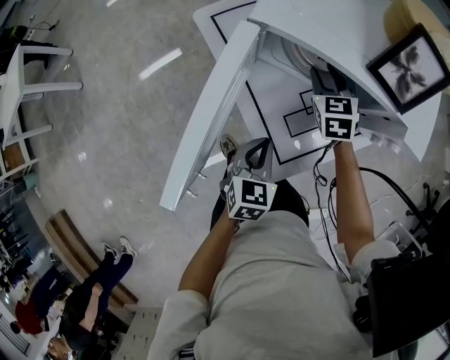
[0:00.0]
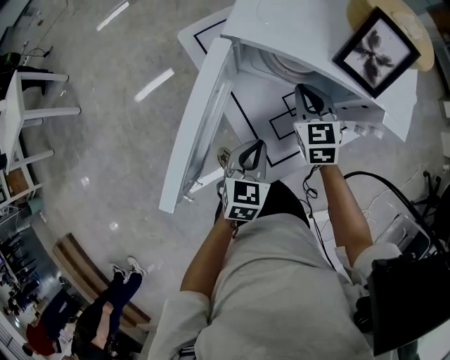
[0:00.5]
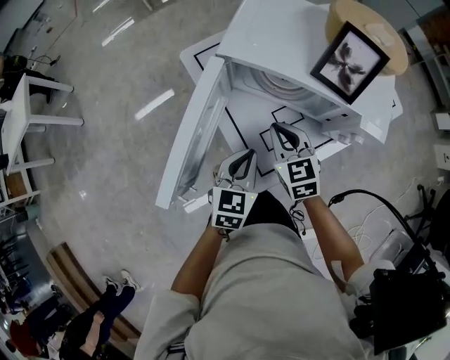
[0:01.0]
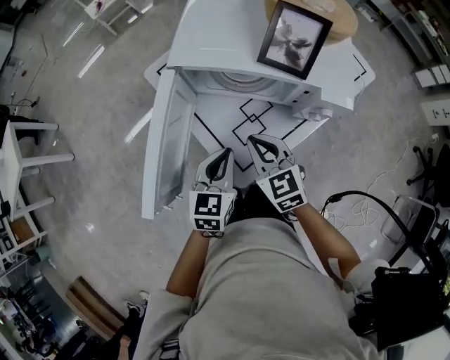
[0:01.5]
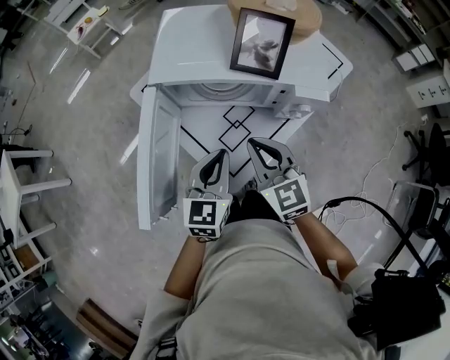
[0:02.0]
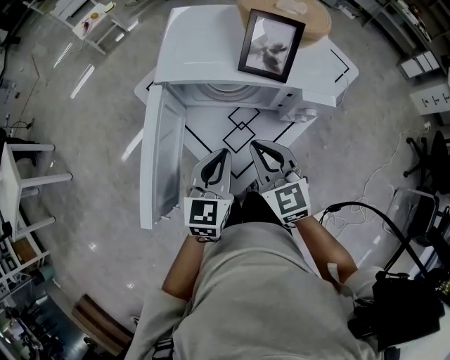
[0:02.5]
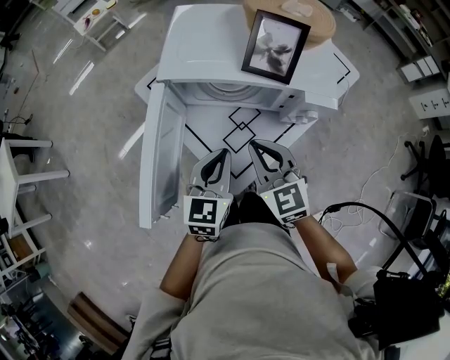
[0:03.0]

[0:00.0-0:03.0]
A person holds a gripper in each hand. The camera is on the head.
0:00.0 to 0:01.5: The left gripper heads upward, covering some 10 cm, while the right gripper moves backward and upward, roughly 20 cm, and closes its fingers.
0:01.5 to 0:03.0: The right gripper heads upward, covering about 5 cm.

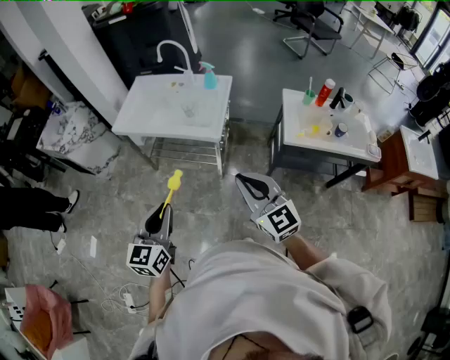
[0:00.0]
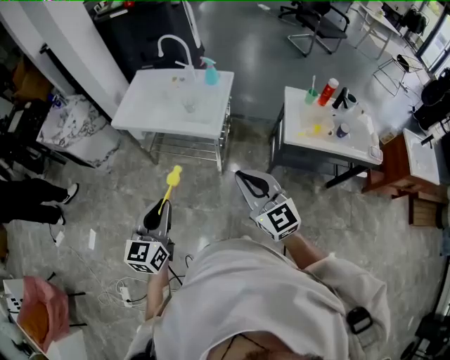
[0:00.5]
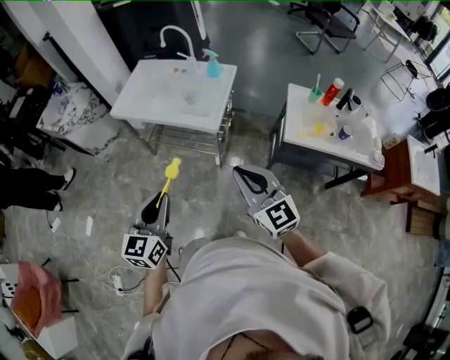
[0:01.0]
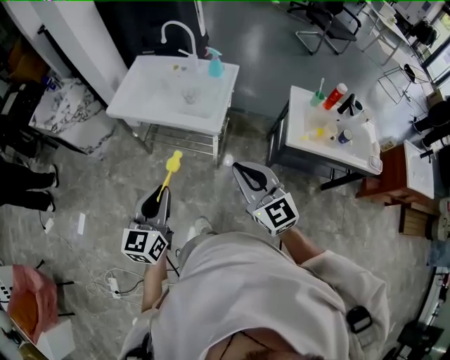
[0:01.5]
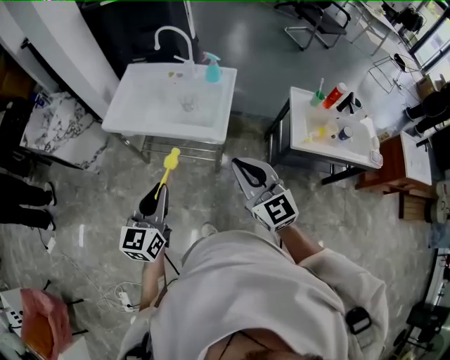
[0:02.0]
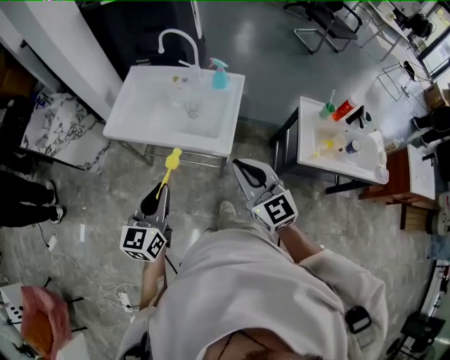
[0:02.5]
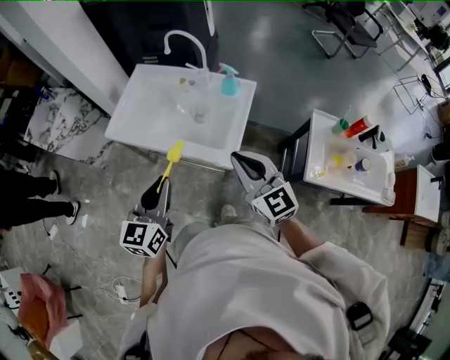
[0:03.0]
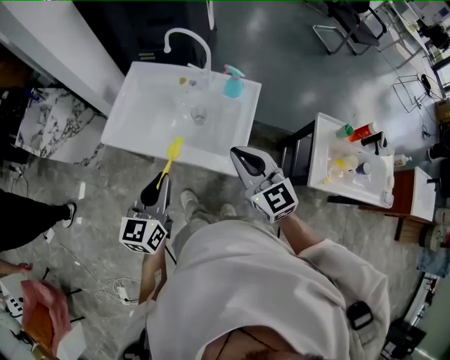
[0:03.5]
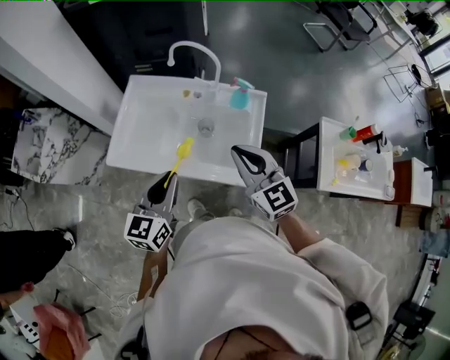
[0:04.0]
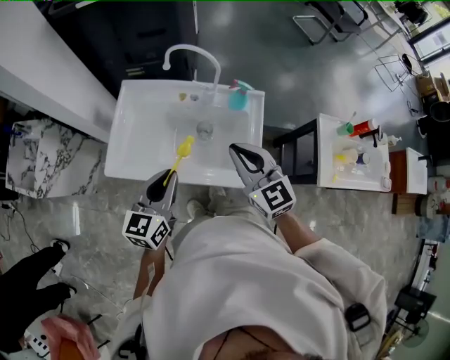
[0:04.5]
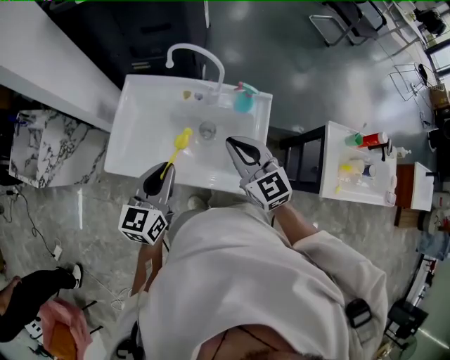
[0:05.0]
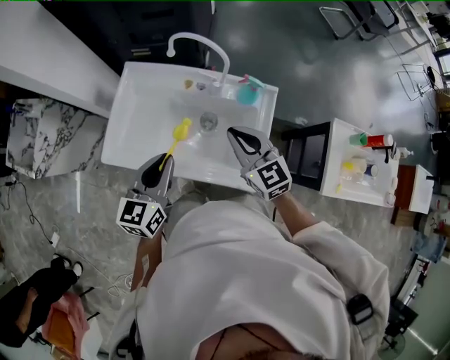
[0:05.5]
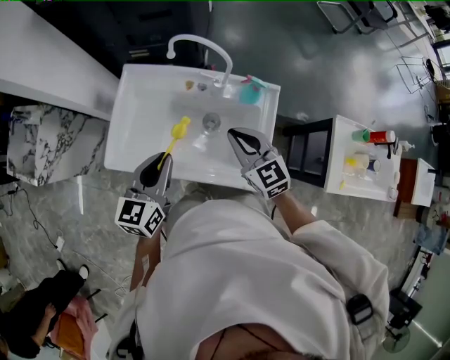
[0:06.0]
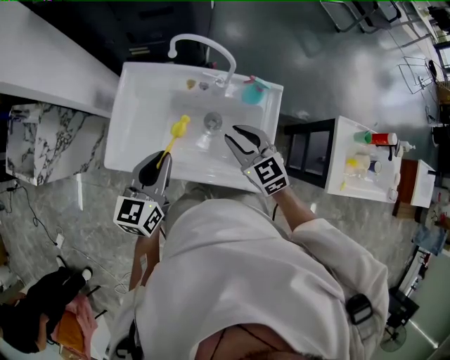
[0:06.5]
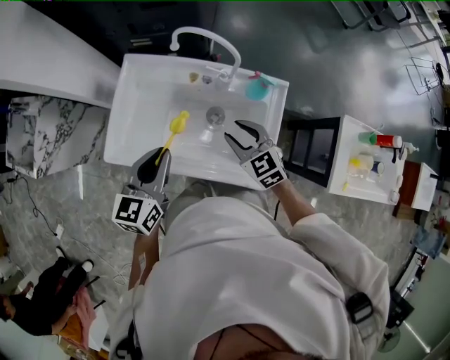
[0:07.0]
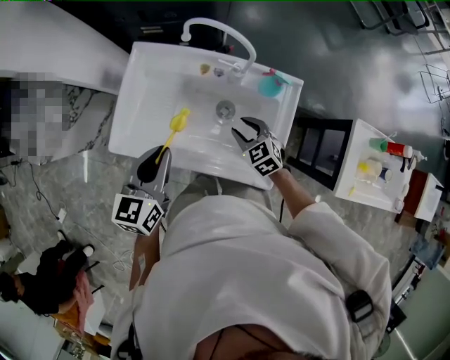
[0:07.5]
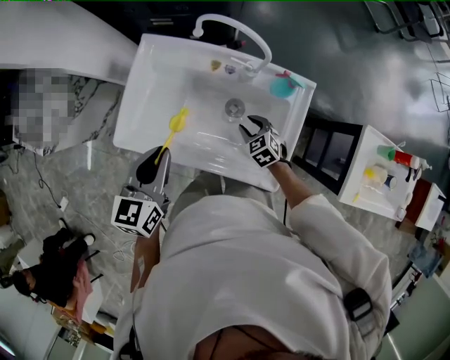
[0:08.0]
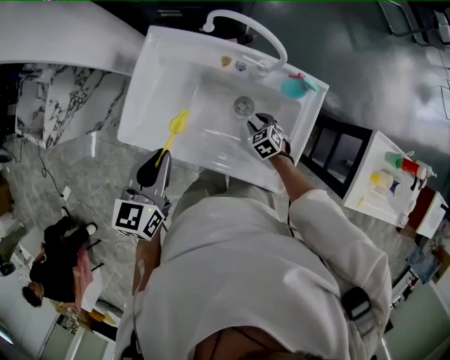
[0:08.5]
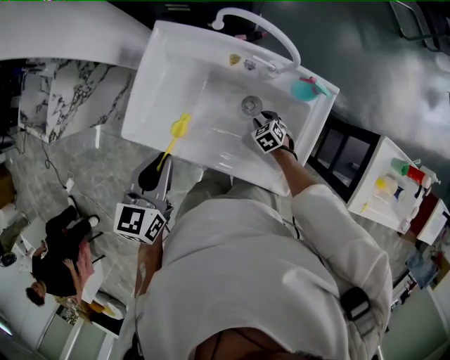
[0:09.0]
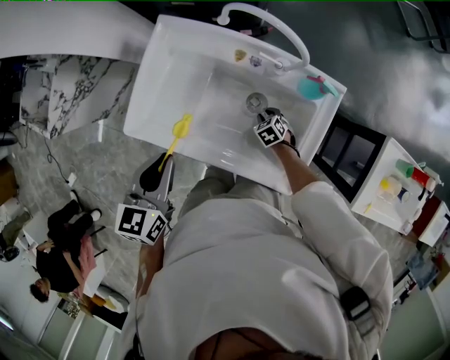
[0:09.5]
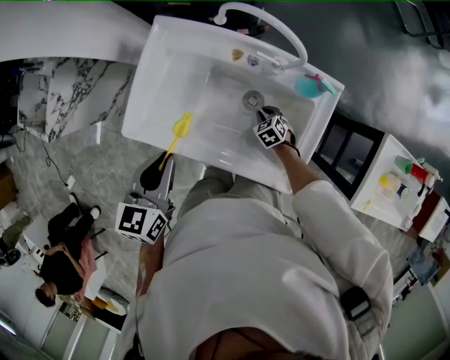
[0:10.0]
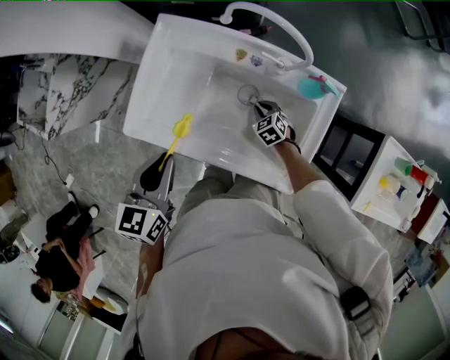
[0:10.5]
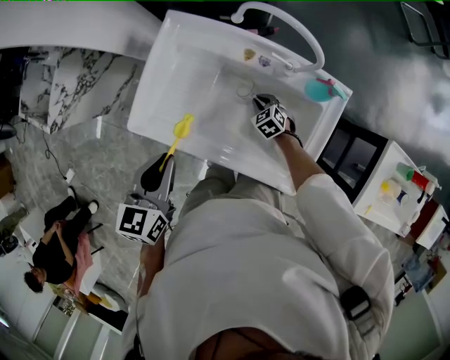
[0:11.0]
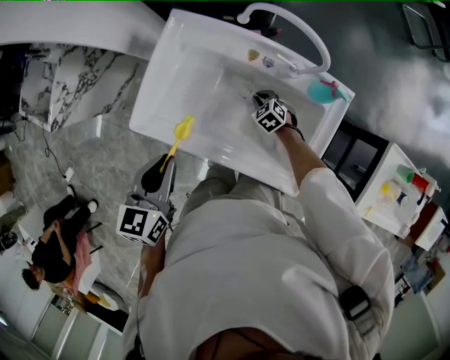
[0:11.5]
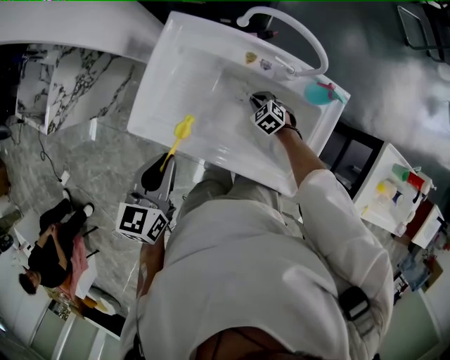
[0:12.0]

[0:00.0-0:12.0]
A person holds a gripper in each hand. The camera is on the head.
0:00.0 to 0:02.0: Both grippers travel together forward, about 15 cm.
0:02.0 to 0:04.0: The grippers both shift forward by about 35 cm.
0:04.0 to 0:06.0: The left gripper heads forward, covering some 15 cm; the right gripper shifts roughly 15 cm forward and downward.
0:06.0 to 0:08.0: The right gripper shifts about 25 cm downward, angles its fingers downward, by roughly 30 degrees, and opens its fingers, while the left gripper ends up about 5 cm from where it was.
0:08.0 to 0:10.0: The right gripper travels downward by roughly 15 cm, and closes.
0:10.0 to 0:12.0: The right gripper moves forward and to the left, some 10 cm.

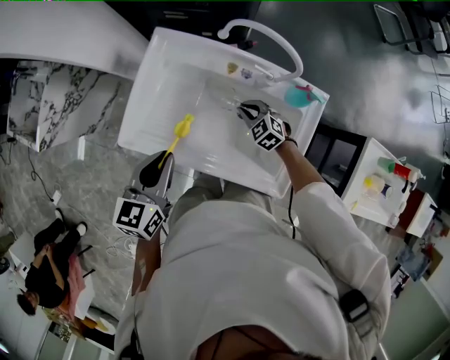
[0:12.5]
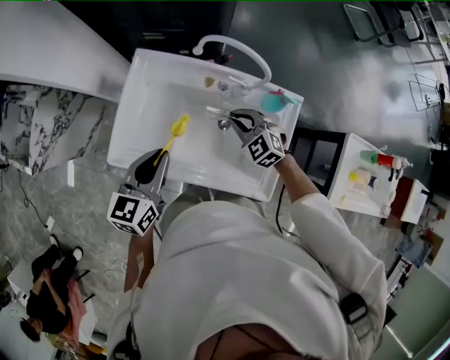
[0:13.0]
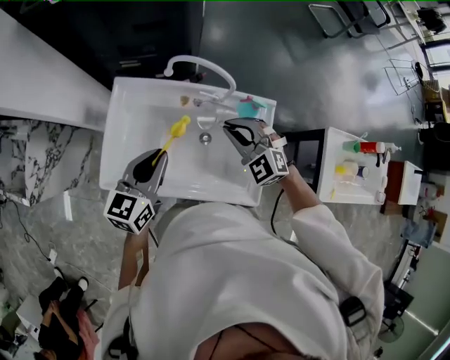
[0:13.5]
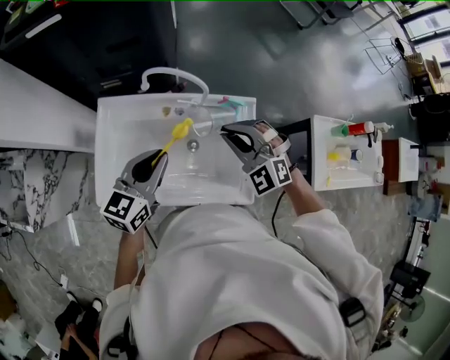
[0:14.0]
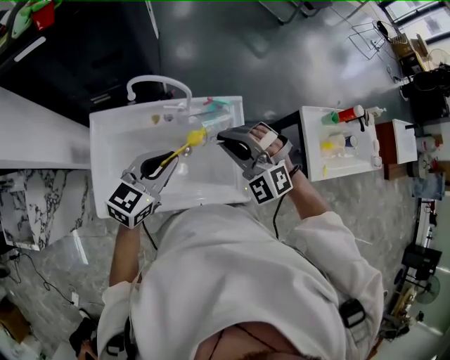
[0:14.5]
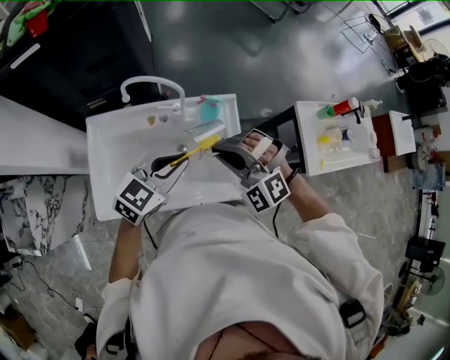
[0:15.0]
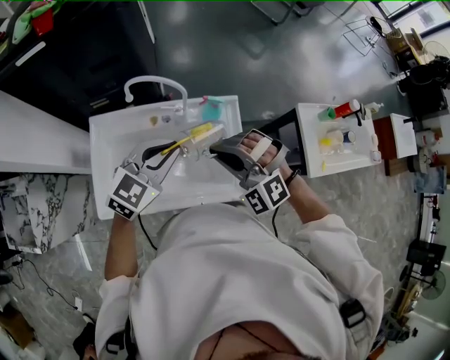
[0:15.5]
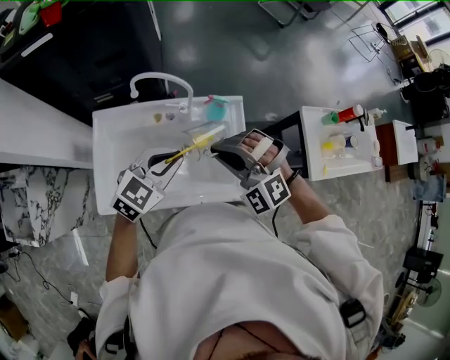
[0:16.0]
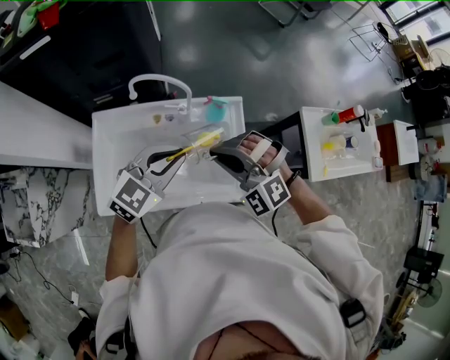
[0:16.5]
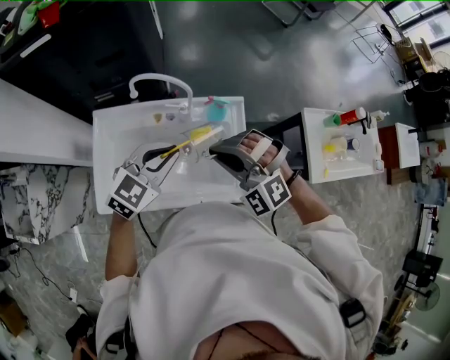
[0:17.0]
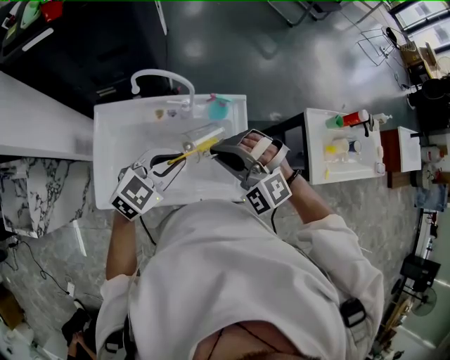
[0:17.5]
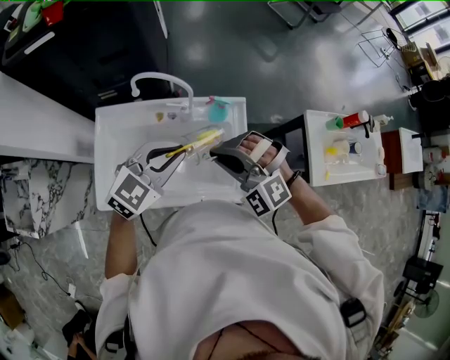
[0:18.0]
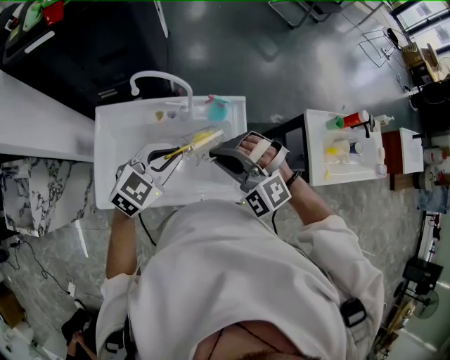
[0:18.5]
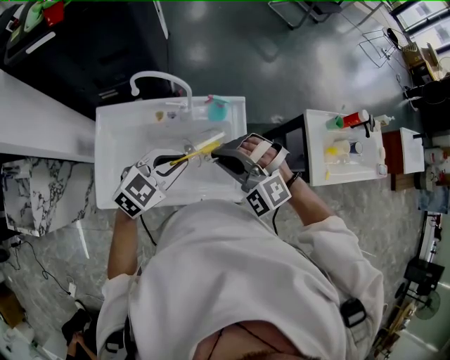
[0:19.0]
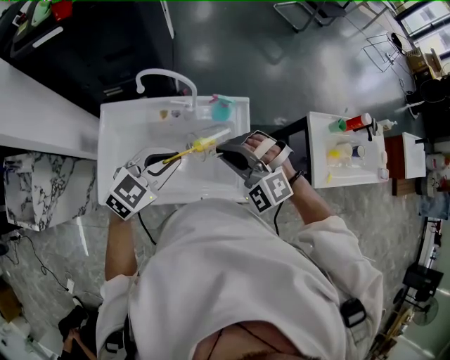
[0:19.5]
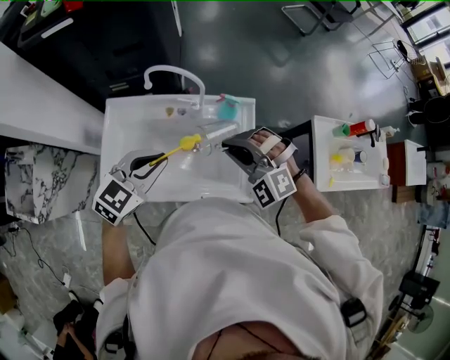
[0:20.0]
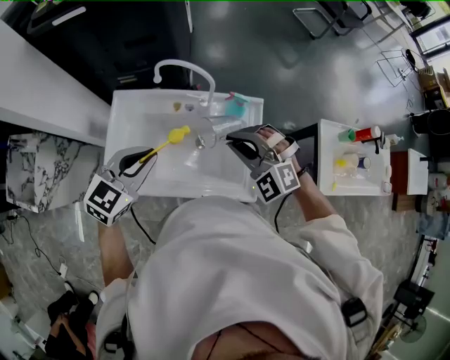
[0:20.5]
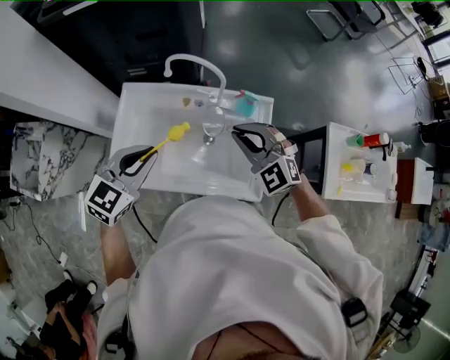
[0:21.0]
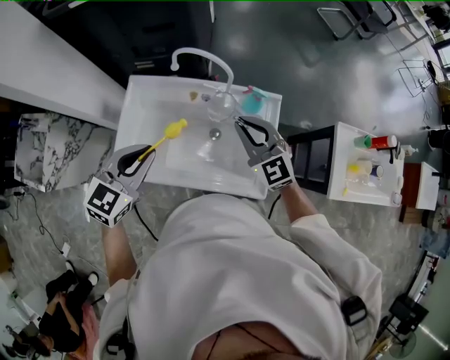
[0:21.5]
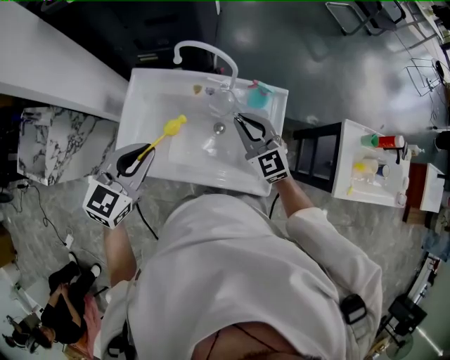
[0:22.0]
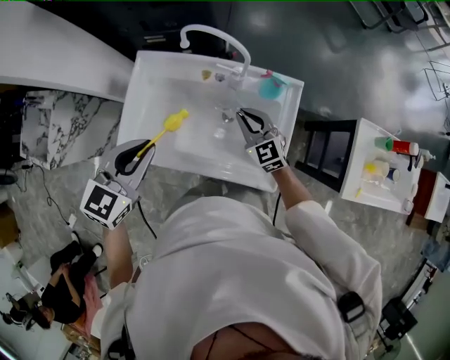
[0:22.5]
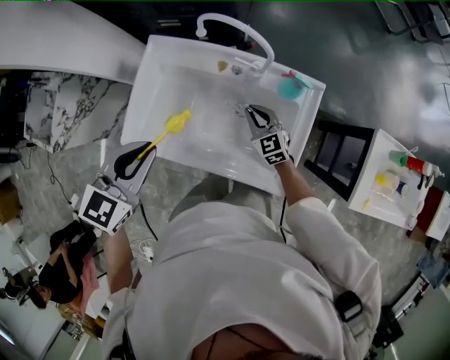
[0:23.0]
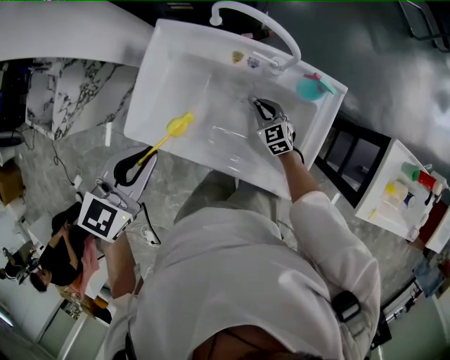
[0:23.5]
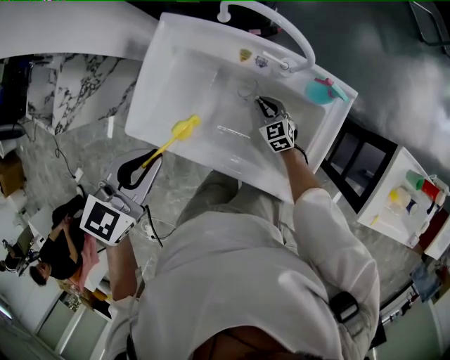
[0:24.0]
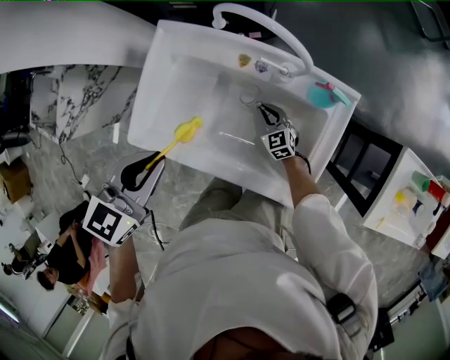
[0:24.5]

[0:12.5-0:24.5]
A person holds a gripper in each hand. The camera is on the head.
0:12.5 to 0:14.5: The left gripper moves some 20 cm, and changes its angle by about 50 degrees. The right gripper travels upward by roughly 35 cm, and swivels approximately 40 degrees.
0:14.5 to 0:16.5: The right gripper ends up about 5 cm from where it was.
0:16.5 to 0:18.5: There are only small adjustments of the grippers.
0:18.5 to 0:20.5: The left gripper heads to the left, covering approximately 10 cm.
0:20.5 to 0:22.5: The right gripper shifts some 15 cm downward, and twists roughly 40 degrees clockwise, seen from behind.
0:22.5 to 0:24.5: The right gripper travels downward by roughly 25 cm, while the left gripper shifts approximately 5 cm downward.
